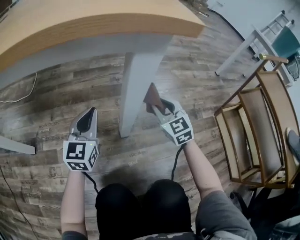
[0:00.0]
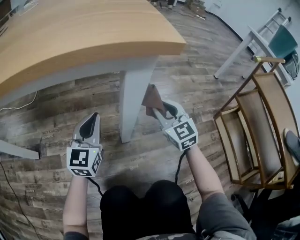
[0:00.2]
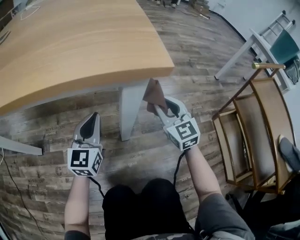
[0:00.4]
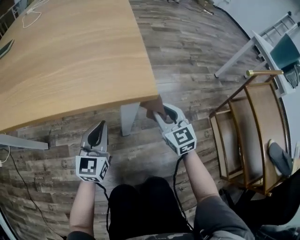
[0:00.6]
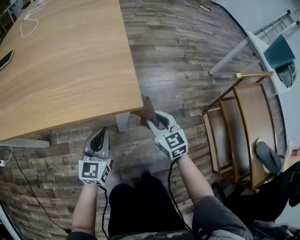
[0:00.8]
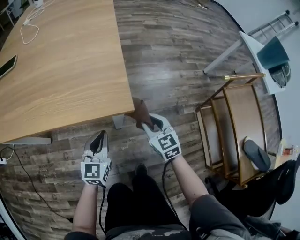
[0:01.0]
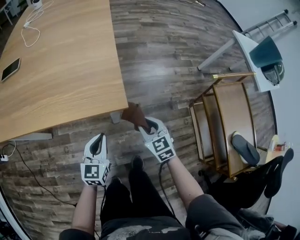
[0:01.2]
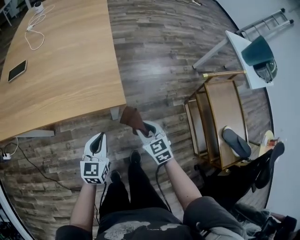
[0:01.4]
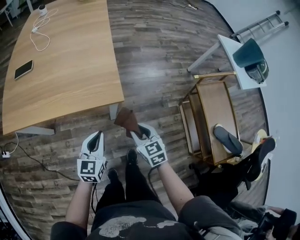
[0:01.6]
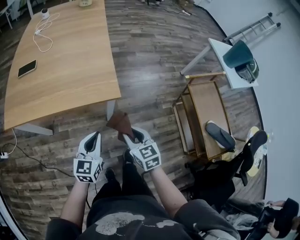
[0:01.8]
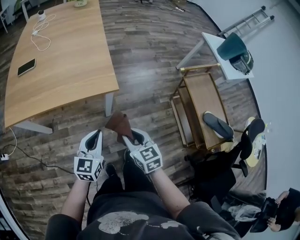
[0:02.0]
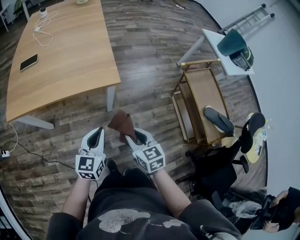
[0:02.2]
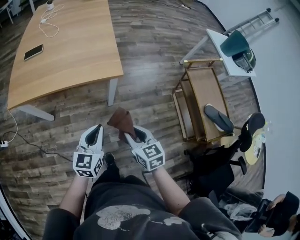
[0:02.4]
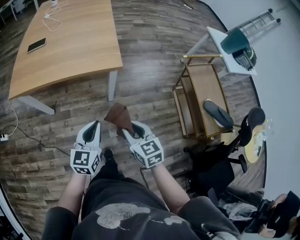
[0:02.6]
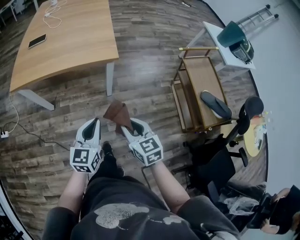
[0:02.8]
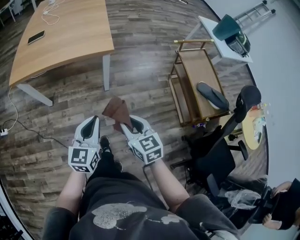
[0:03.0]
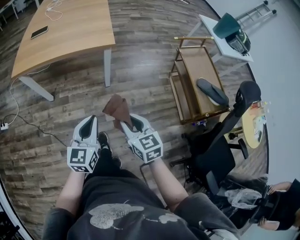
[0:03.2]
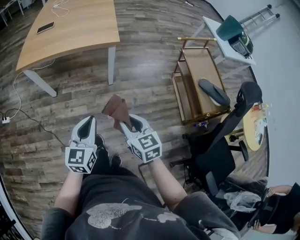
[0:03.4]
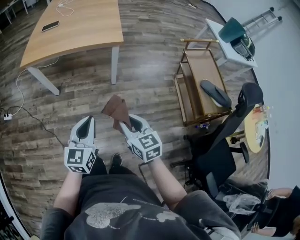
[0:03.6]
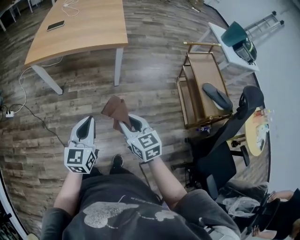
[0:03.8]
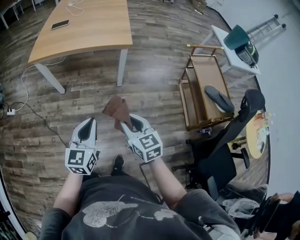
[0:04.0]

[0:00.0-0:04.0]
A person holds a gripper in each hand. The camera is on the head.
0:00.0 to 0:01.4: The grippers both shift upward and backward by approximately 35 cm. The right gripper rotates approximately 20 degrees.
0:01.4 to 0:02.6: Both grippers travel together backward and upward, approximately 25 cm.
0:02.6 to 0:04.0: The grippers both shift backward by roughly 20 cm.

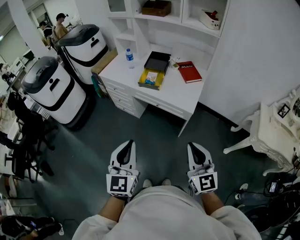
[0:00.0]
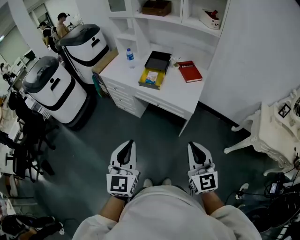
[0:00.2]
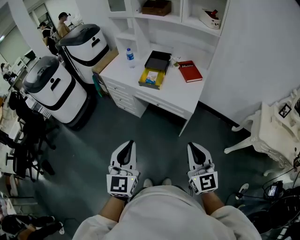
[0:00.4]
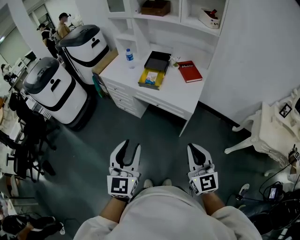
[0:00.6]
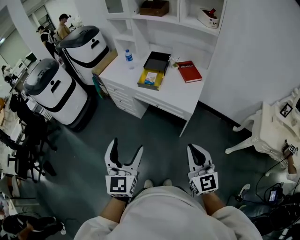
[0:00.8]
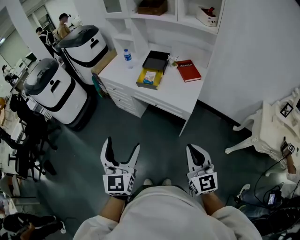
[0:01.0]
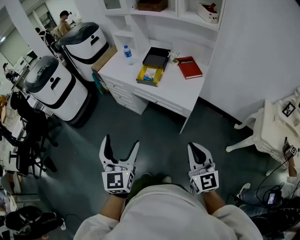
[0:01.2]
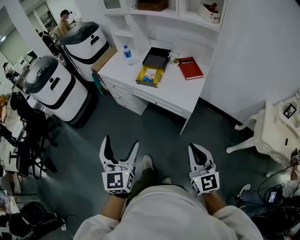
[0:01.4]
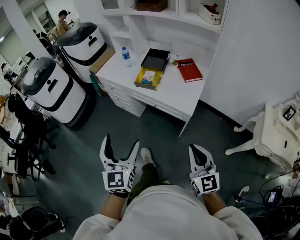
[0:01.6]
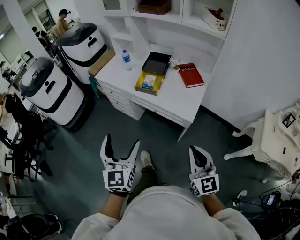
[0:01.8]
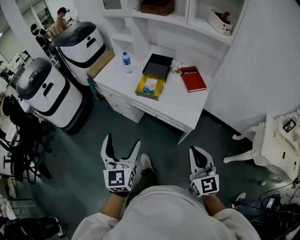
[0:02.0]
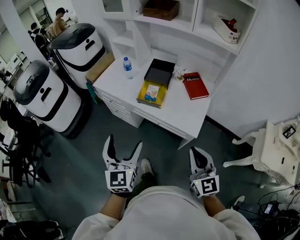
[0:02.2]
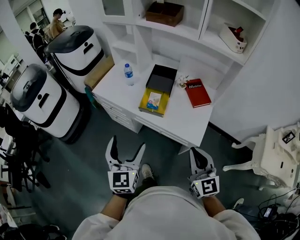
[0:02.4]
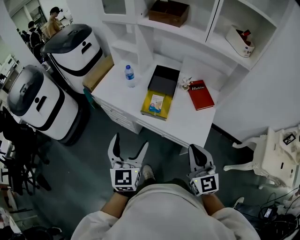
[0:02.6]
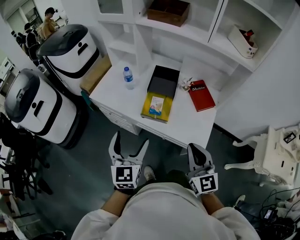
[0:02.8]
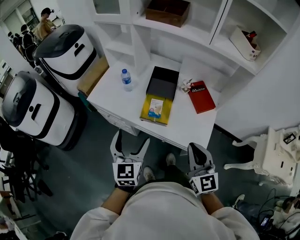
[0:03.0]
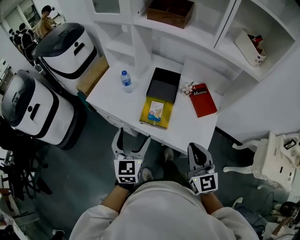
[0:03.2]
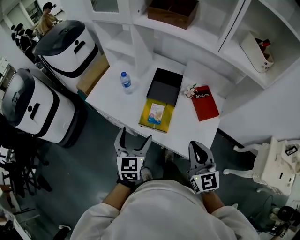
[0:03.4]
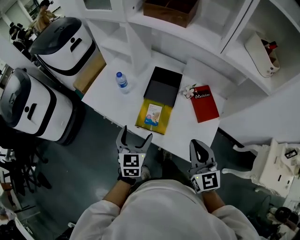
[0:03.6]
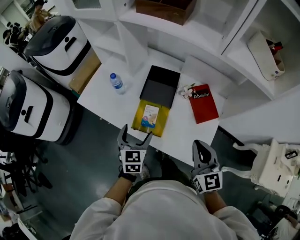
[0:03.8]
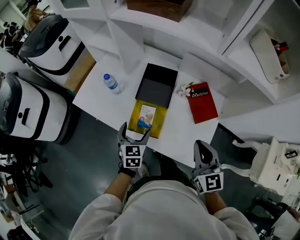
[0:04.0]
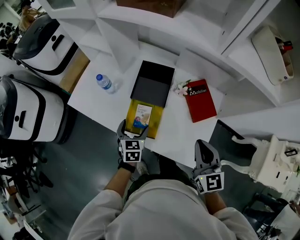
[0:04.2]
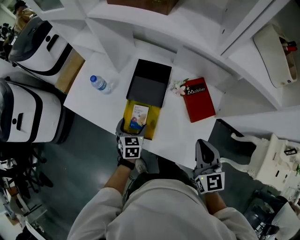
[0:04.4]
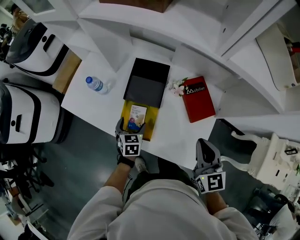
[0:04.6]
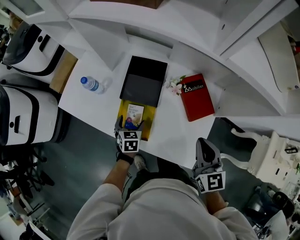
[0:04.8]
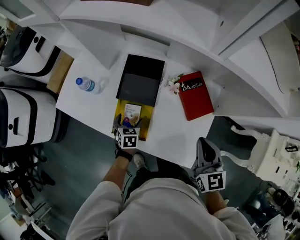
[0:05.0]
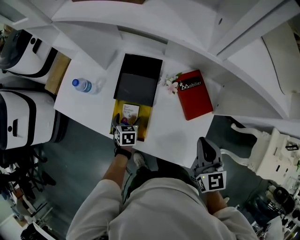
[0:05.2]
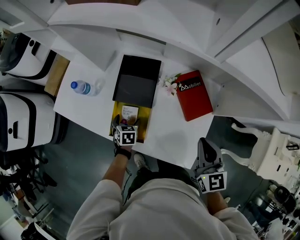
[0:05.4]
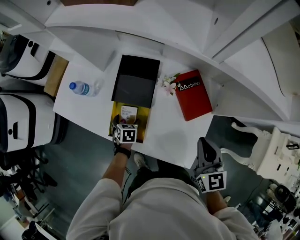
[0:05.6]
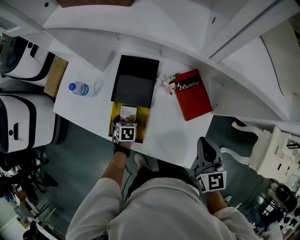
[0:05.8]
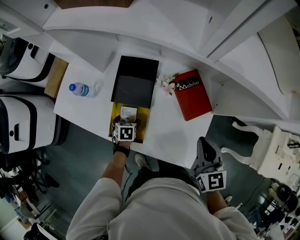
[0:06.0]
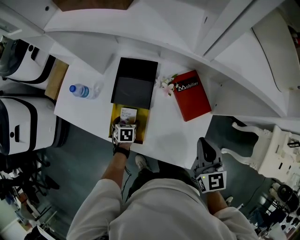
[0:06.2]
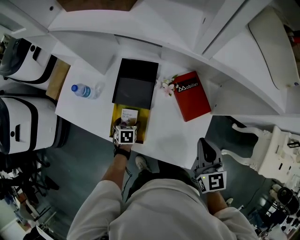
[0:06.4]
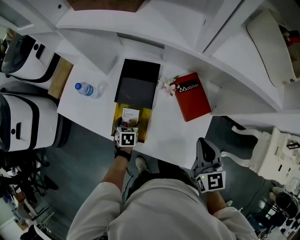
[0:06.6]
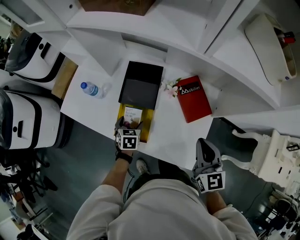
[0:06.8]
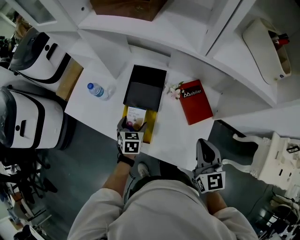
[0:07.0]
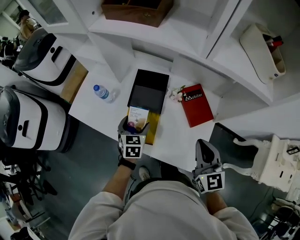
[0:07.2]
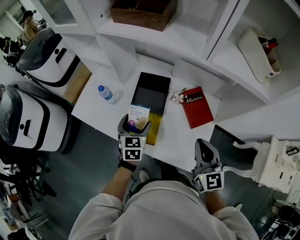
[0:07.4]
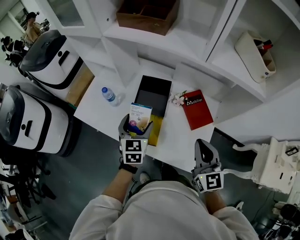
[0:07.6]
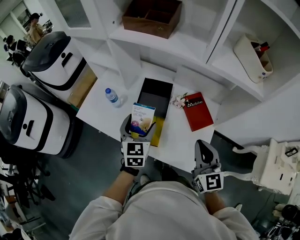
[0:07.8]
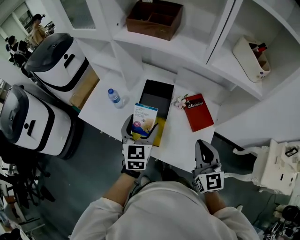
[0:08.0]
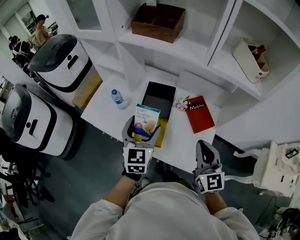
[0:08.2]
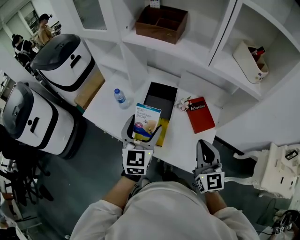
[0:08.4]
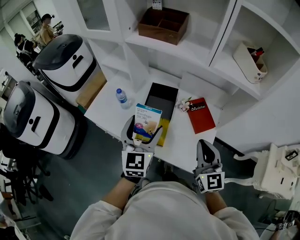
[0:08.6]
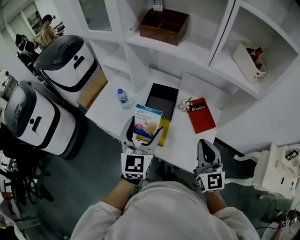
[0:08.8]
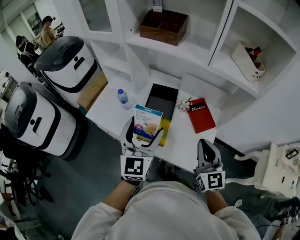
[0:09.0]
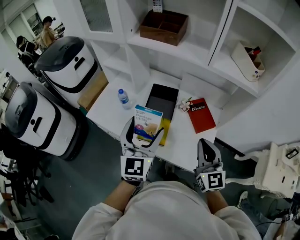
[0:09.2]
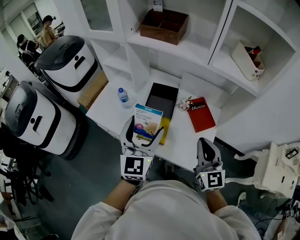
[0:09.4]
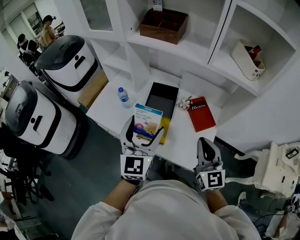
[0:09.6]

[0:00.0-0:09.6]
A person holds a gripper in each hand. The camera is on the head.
0:00.0 to 0:01.6: The right gripper travels to the right by some 5 cm; the left gripper is displaced forward by about 5 cm, and opens its fingers.
0:01.6 to 0:03.2: Both grippers move forward, some 40 cm.
0:03.2 to 0:04.8: The left gripper heads downward and forward, covering approximately 35 cm, and points its fingers about 40 degrees further downward. The right gripper goes approximately 25 cm forward, to the right and downward.
0:04.8 to 0:06.4: The left gripper travels downward by about 5 cm.
0:06.4 to 0:08.0: The left gripper shifts some 35 cm upward, and tilts its fingers some 50 degrees upward; the right gripper is displaced upward, to the left and backward by roughly 15 cm.
0:08.0 to 0:09.6: The right gripper shifts by about 5 cm; the left gripper is displaced upward and backward by roughly 15 cm.

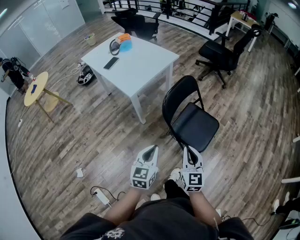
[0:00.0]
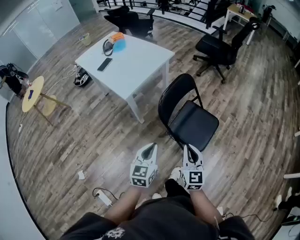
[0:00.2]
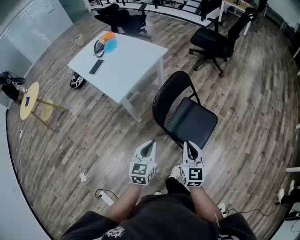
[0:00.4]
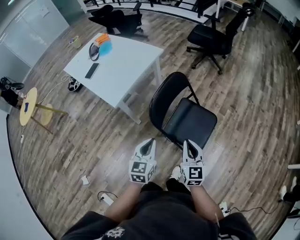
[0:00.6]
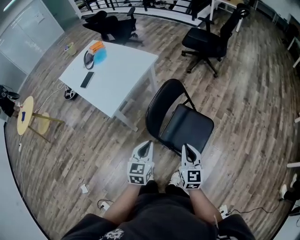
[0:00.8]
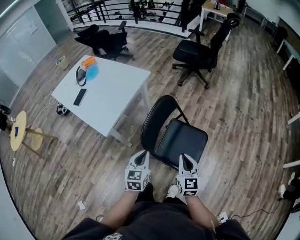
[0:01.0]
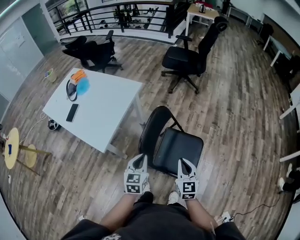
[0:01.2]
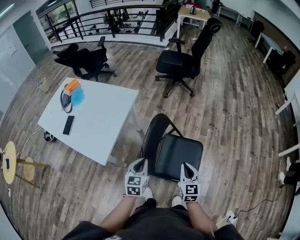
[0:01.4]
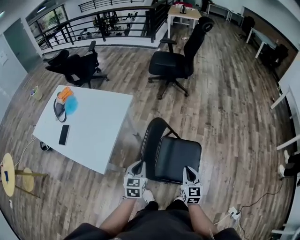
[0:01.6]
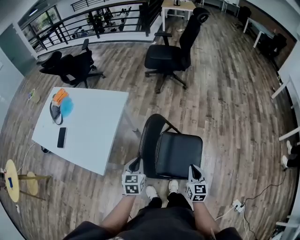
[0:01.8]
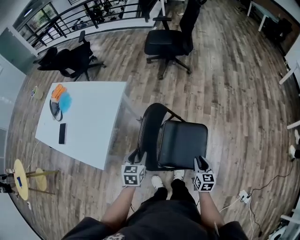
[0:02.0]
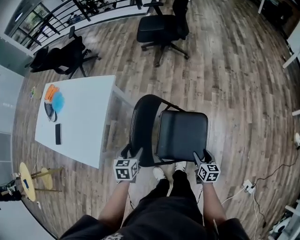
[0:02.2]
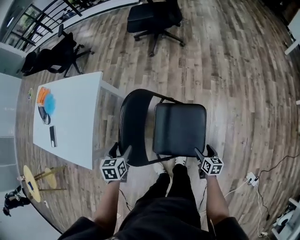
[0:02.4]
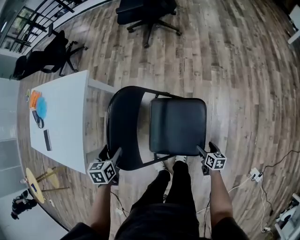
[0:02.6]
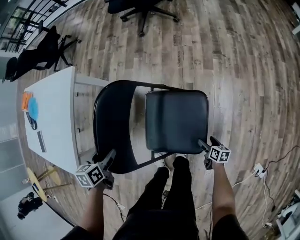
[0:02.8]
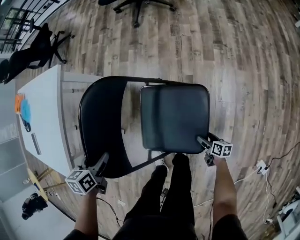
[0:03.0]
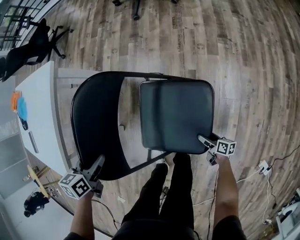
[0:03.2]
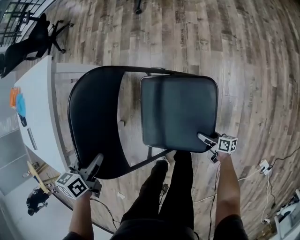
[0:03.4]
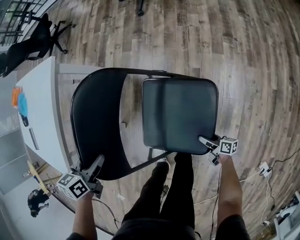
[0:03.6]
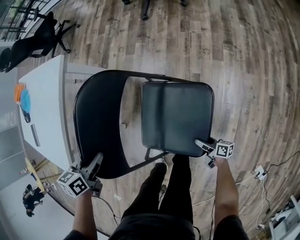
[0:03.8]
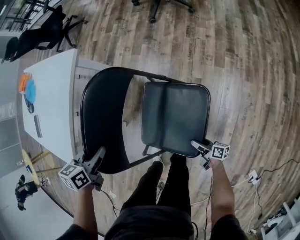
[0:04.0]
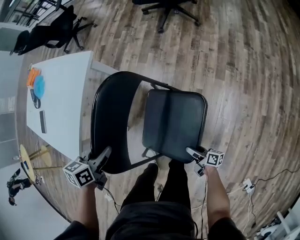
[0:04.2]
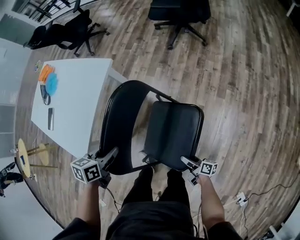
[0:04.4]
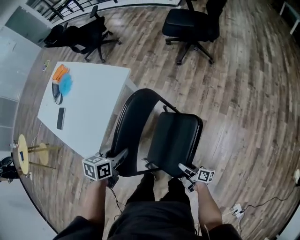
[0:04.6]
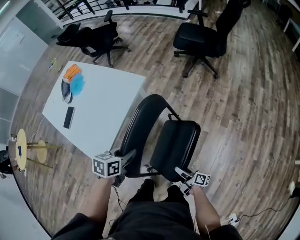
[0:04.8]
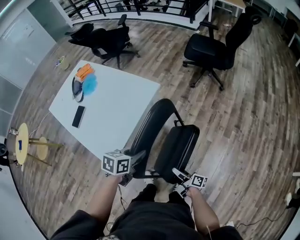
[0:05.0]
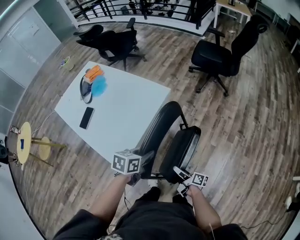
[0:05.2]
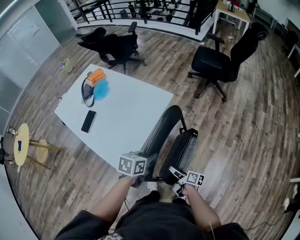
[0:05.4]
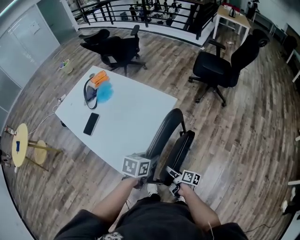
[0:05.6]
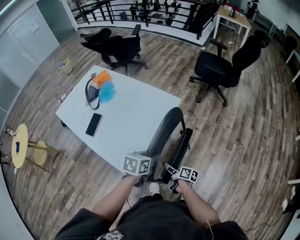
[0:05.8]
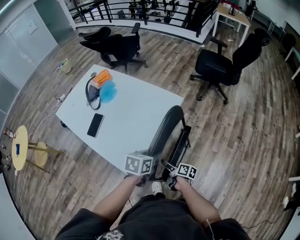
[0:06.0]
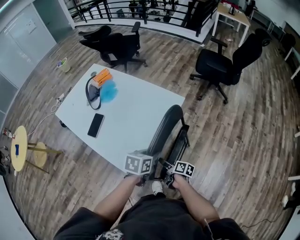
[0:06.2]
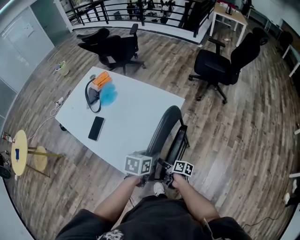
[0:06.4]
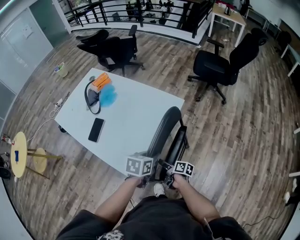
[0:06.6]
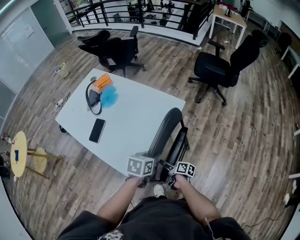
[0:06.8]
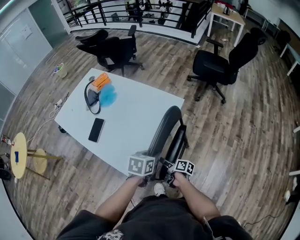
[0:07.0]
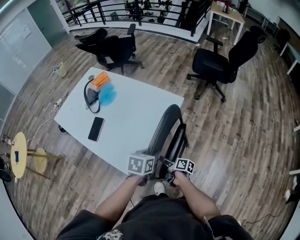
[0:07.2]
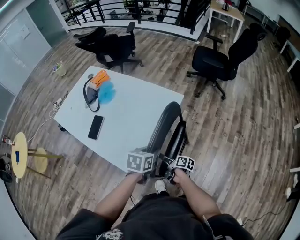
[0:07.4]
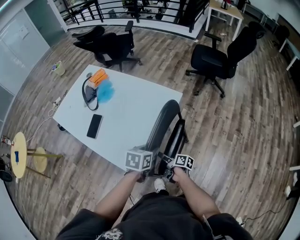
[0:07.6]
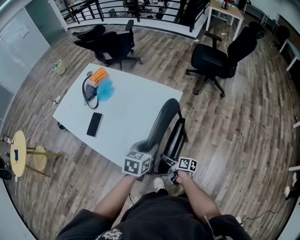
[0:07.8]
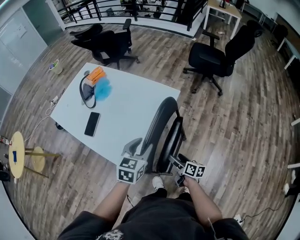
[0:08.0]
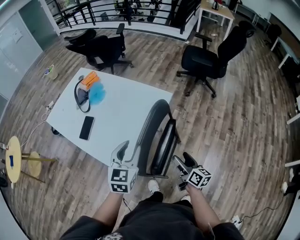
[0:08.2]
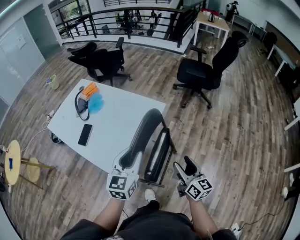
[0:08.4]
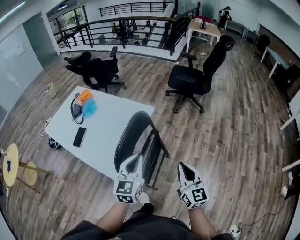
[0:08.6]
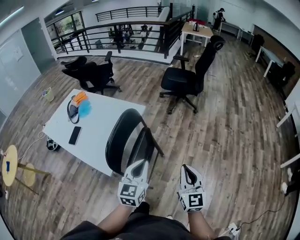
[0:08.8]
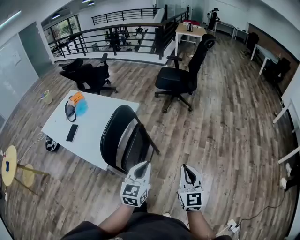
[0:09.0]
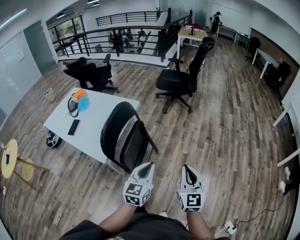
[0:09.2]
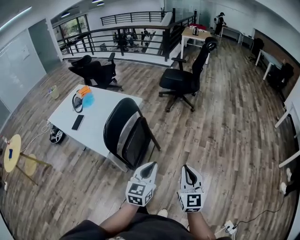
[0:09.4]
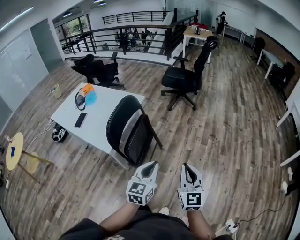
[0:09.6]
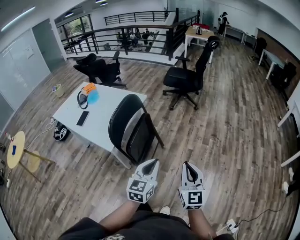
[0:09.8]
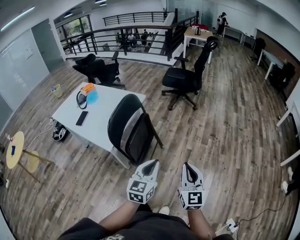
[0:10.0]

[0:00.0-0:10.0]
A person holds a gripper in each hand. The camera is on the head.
0:00.0 to 0:01.4: Both grippers travel together forward, about 30 cm. The right gripper swivels approximately 20 degrees.
0:01.4 to 0:02.8: The left gripper moves downward and forward, about 25 cm, rotates some 30 degrees, and opens up. The right gripper shifts approximately 50 cm downward and to the right, rolls clockwise, seen from behind, by roughly 50 degrees, and opens.
0:02.8 to 0:04.2: The left gripper moves upward, some 10 cm, and closes its fingers; the right gripper moves to the left, upward and forward, approximately 15 cm, and swivels about 40 degrees.
0:04.2 to 0:05.8: The right gripper goes approximately 50 cm to the left and upward. The left gripper is displaced to the left and upward by roughly 25 cm.
0:05.8 to 0:07.2: The right gripper is displaced to the left by about 5 cm.
0:07.2 to 0:08.6: The left gripper heads upward, backward and to the right, covering approximately 20 cm, and points its fingers roughly 40 degrees further upward; the right gripper moves upward, to the right and backward, some 40 cm, rotates around the line of its fingers by approximately 70 degrees, counterclockwise from behind, and closes up.
0:08.6 to 0:10.0: Both grippers travel together backward and to the right, some 30 cm.
